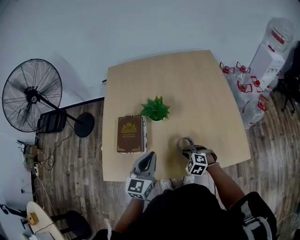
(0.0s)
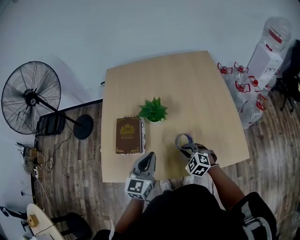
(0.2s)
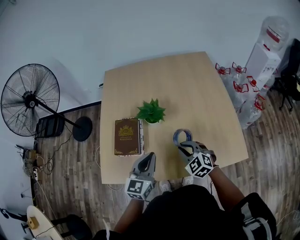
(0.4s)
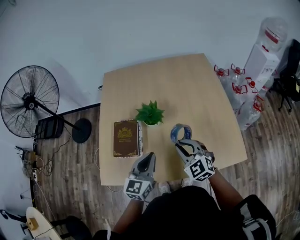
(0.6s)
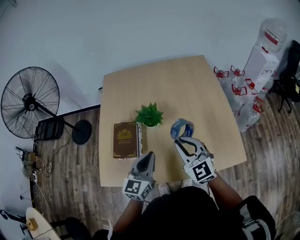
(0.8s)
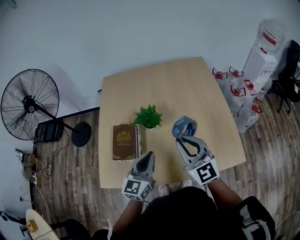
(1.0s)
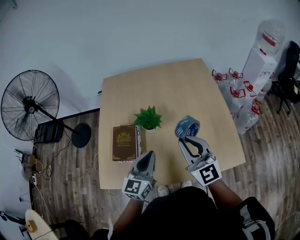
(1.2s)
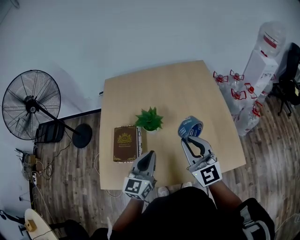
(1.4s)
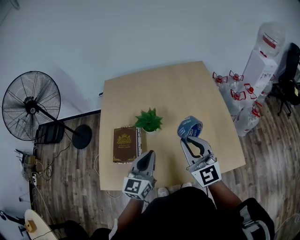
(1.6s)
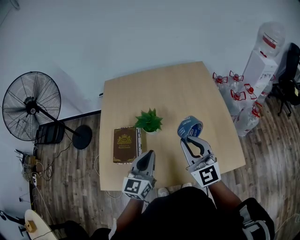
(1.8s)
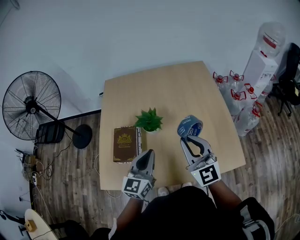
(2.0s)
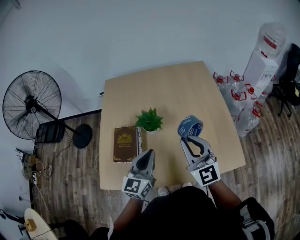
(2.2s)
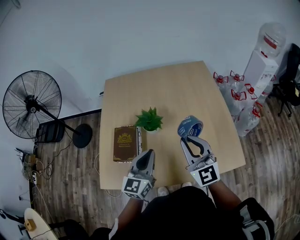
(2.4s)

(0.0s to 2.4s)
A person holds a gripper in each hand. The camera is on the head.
0.0s - 1.2s: The right gripper shifts roughly 30 cm upward, and tilts its fingers some 60 degrees upward; the left gripper moves some 5 cm.
1.2s - 2.4s: There are only small adjustments of the grippers.

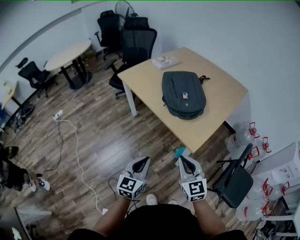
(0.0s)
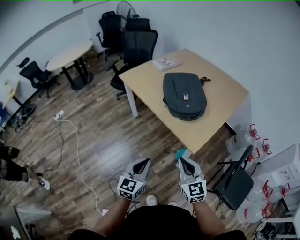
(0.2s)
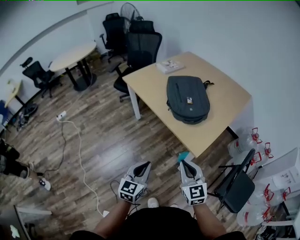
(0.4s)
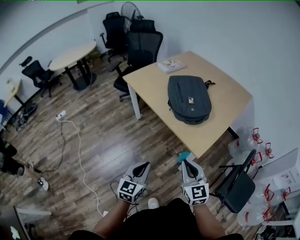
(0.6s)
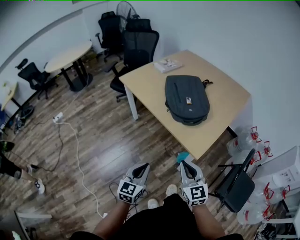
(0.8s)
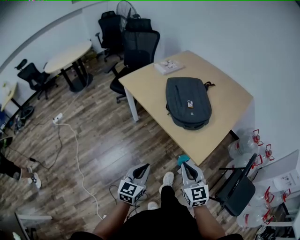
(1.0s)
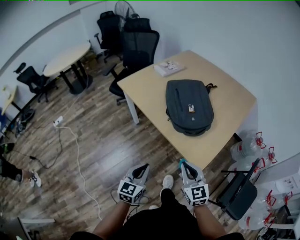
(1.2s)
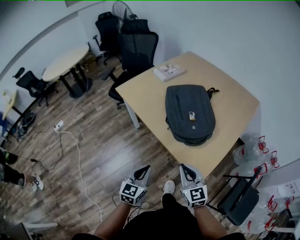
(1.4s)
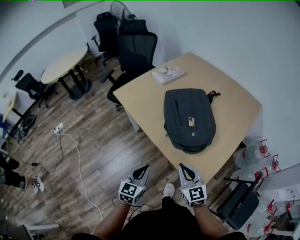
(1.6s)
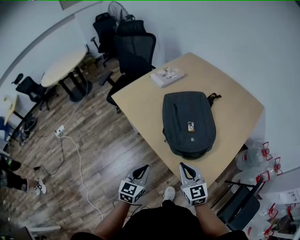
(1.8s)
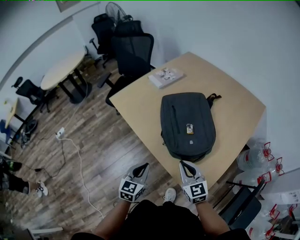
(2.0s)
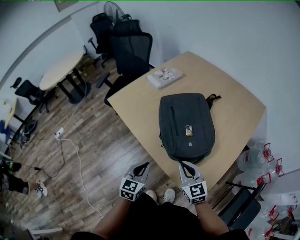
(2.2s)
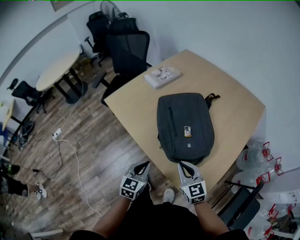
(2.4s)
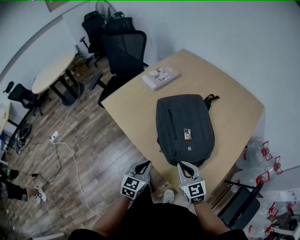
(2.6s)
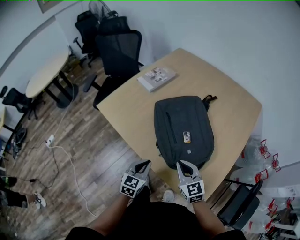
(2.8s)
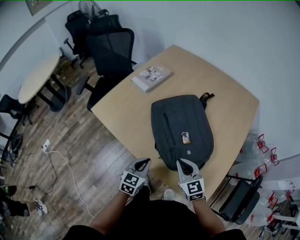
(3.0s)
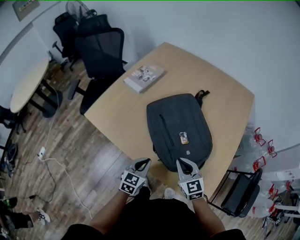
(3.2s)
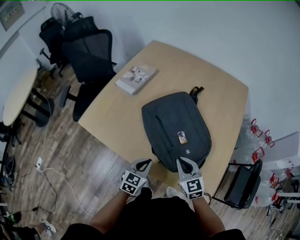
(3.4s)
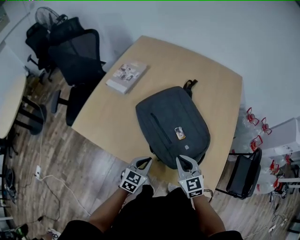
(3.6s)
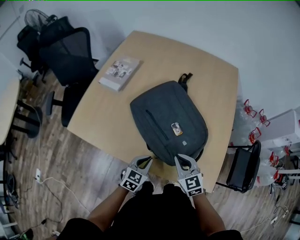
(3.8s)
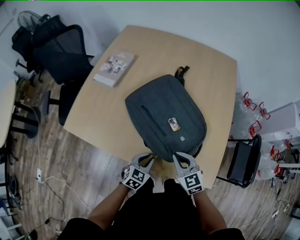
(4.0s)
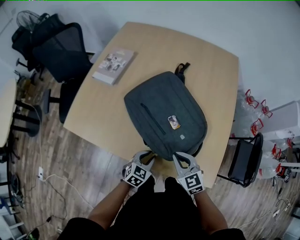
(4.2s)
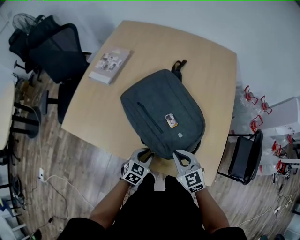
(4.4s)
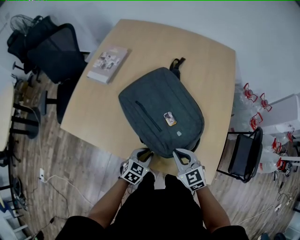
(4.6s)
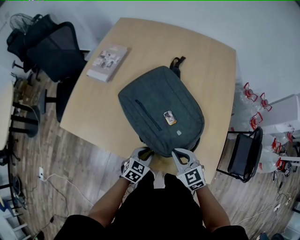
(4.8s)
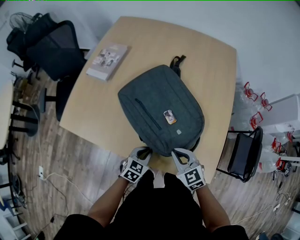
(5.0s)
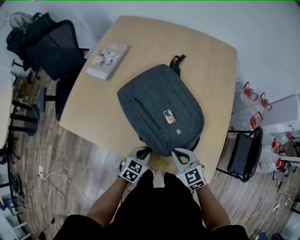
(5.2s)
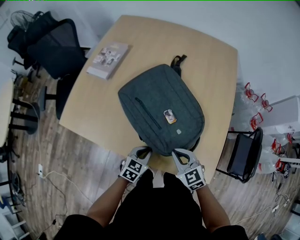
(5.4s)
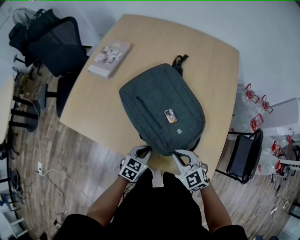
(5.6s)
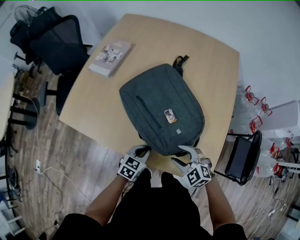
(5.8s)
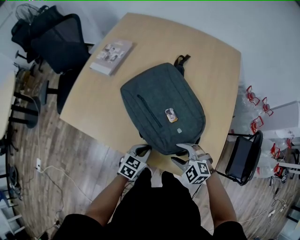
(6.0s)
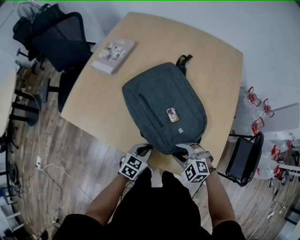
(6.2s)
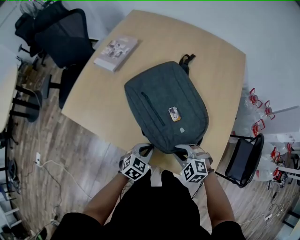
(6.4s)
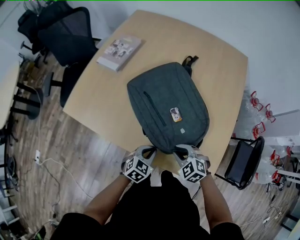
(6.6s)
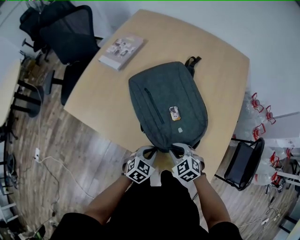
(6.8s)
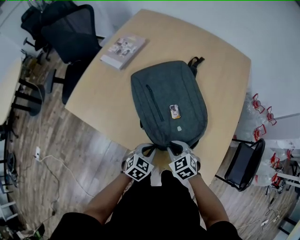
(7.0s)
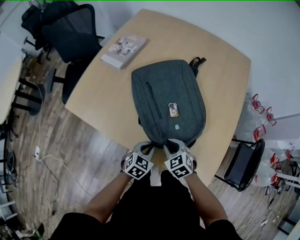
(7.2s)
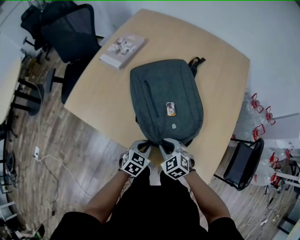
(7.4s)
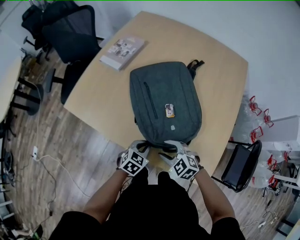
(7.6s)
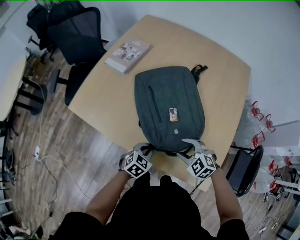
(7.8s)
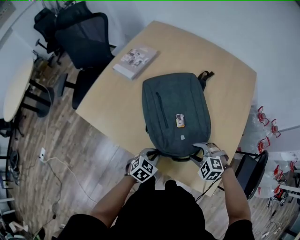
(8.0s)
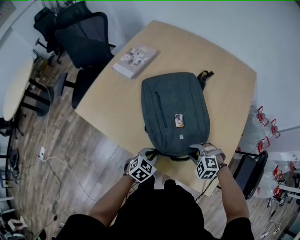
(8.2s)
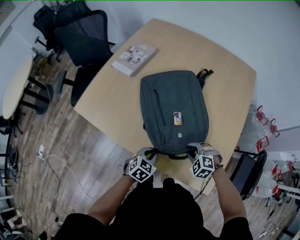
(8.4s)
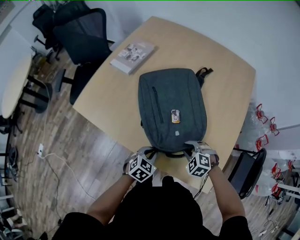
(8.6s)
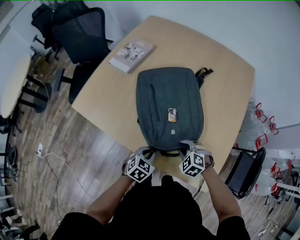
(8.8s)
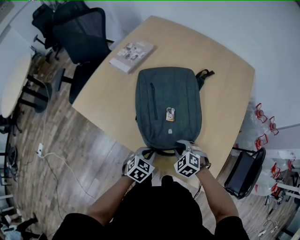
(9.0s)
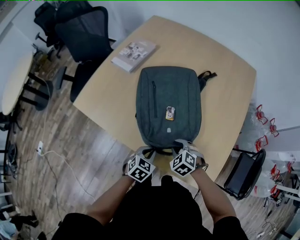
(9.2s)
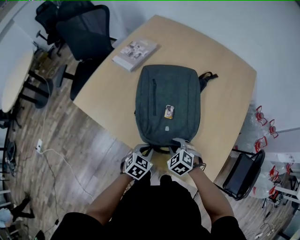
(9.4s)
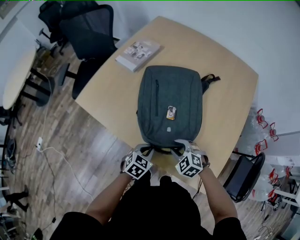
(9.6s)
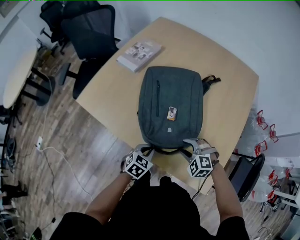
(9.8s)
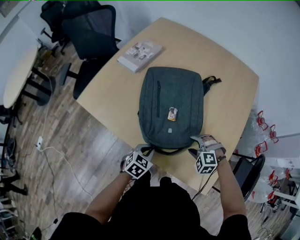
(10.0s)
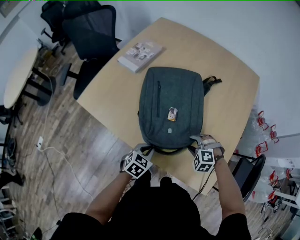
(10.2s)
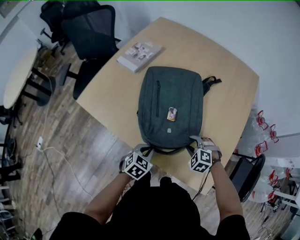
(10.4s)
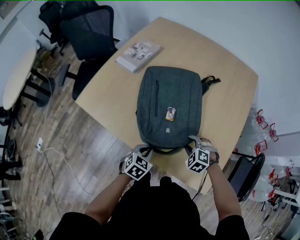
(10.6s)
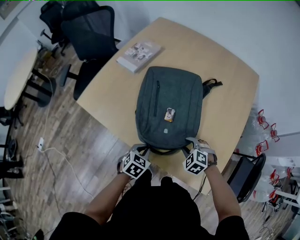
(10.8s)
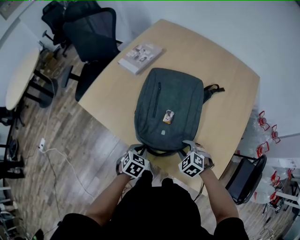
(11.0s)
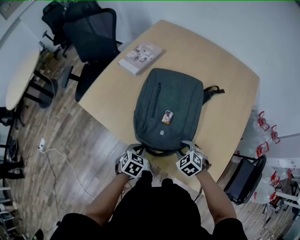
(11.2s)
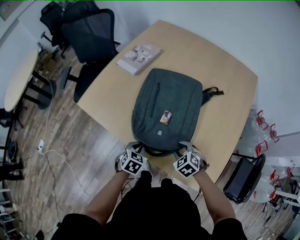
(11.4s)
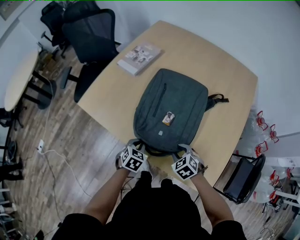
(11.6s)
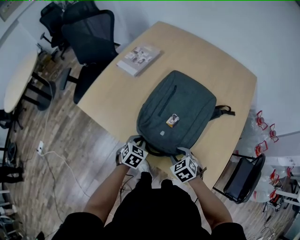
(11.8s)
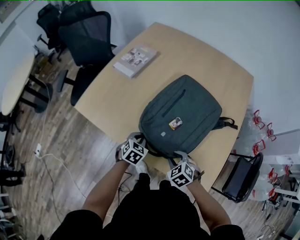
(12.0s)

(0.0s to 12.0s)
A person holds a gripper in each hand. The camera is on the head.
0.0s - 1.6s: Both grippers move forward, roughly 20 cm.
1.6s - 3.0s: Both grippers travel together forward, approximately 20 cm.
3.0s - 4.4s: The left gripper shifts roughly 10 cm downward, changes its angle by about 30 degrees, and opens up.
4.4s - 6.0s: The right gripper shifts by approximately 5 cm, swivels some 40 degrees, and opens.
6.0s - 7.6s: The right gripper goes some 5 cm to the left, and closes and opens again.
7.6s - 9.0s: The right gripper closes up.
9.0s - 10.4s: The right gripper heads to the right, covering approximately 5 cm, and opens its fingers.
10.4s - 12.0s: The left gripper shifts some 10 cm forward, while the right gripper moves to the left and backward, roughly 10 cm, and changes its angle by approximately 30 degrees.

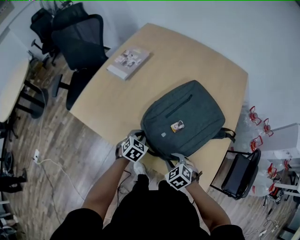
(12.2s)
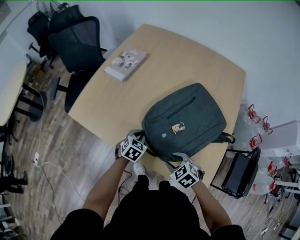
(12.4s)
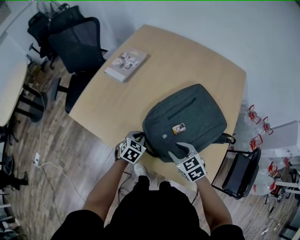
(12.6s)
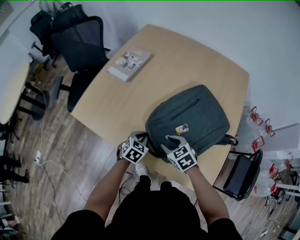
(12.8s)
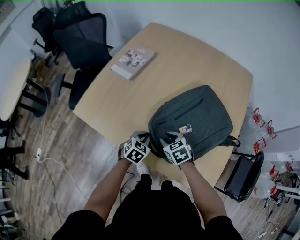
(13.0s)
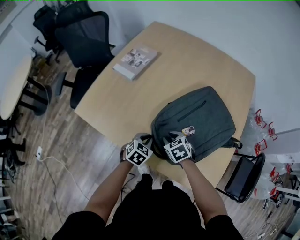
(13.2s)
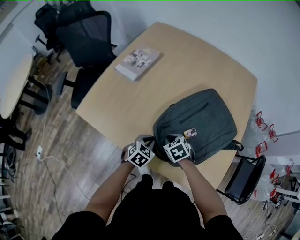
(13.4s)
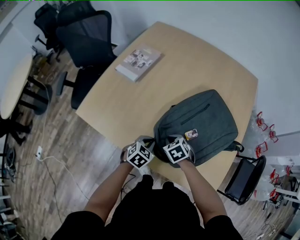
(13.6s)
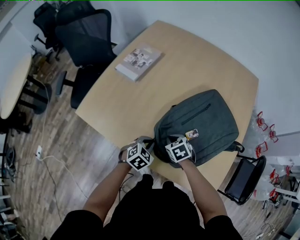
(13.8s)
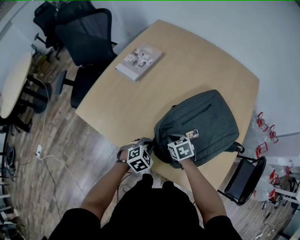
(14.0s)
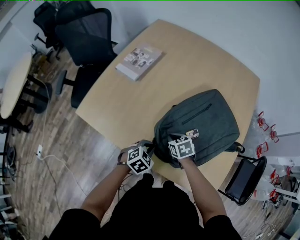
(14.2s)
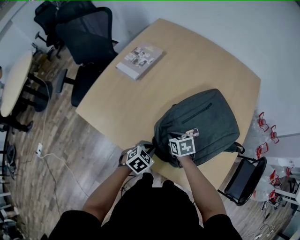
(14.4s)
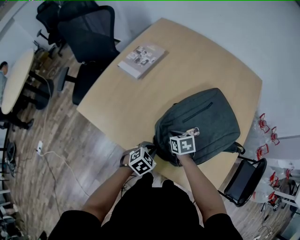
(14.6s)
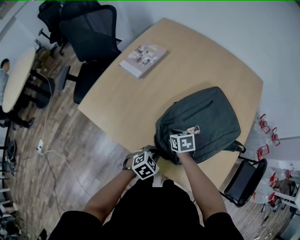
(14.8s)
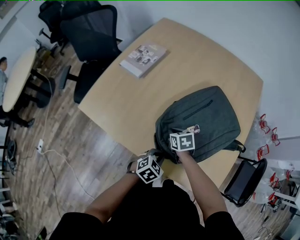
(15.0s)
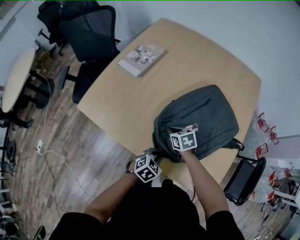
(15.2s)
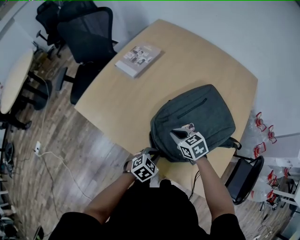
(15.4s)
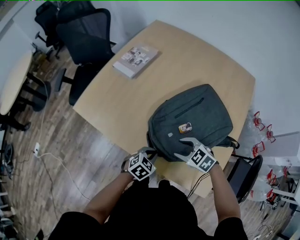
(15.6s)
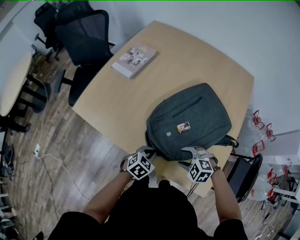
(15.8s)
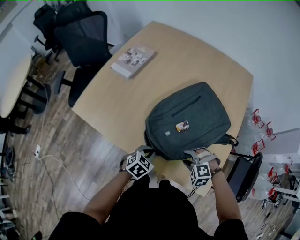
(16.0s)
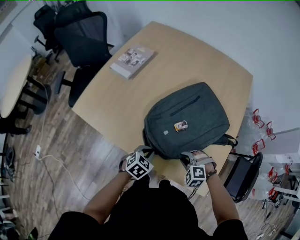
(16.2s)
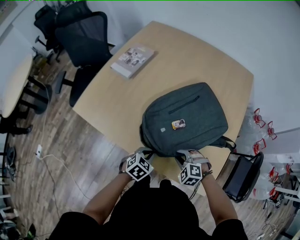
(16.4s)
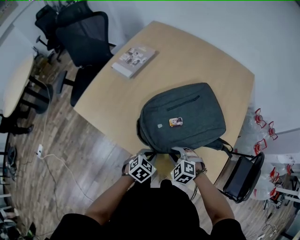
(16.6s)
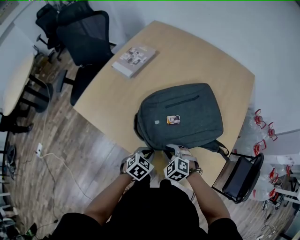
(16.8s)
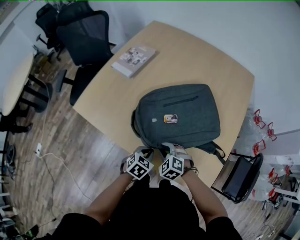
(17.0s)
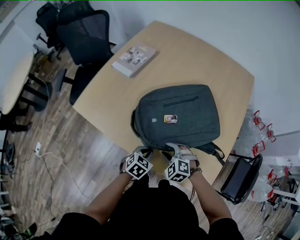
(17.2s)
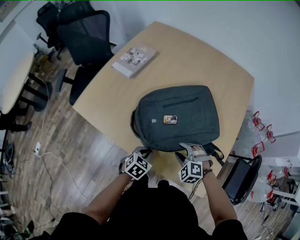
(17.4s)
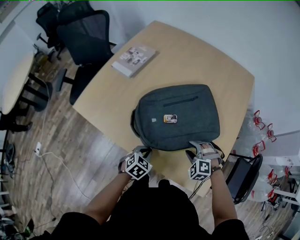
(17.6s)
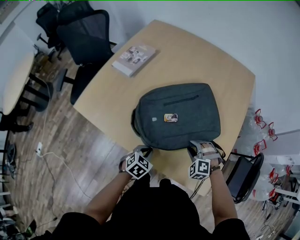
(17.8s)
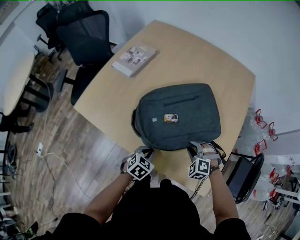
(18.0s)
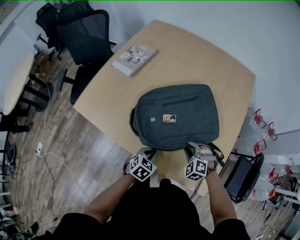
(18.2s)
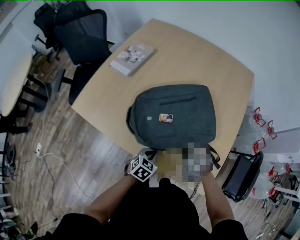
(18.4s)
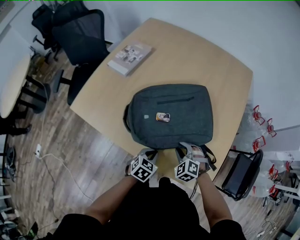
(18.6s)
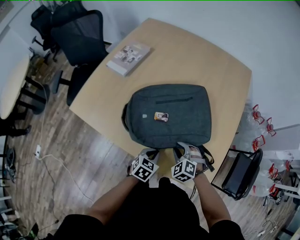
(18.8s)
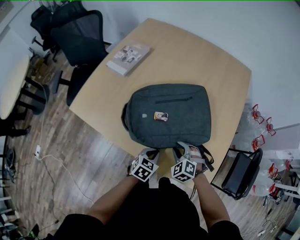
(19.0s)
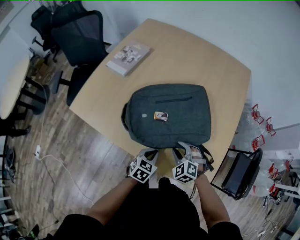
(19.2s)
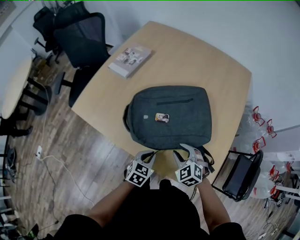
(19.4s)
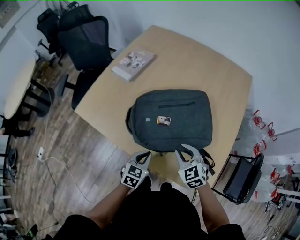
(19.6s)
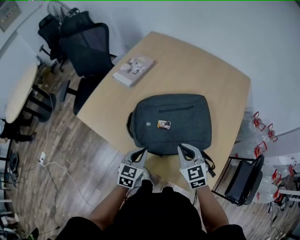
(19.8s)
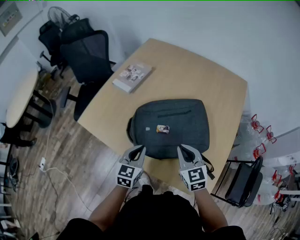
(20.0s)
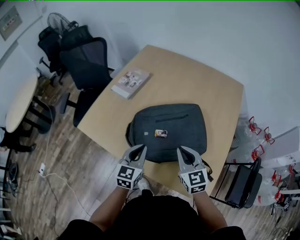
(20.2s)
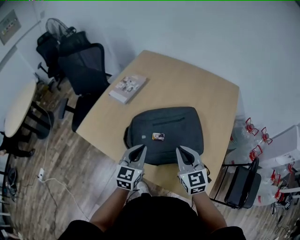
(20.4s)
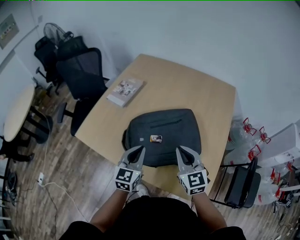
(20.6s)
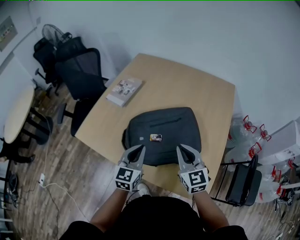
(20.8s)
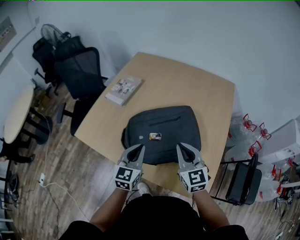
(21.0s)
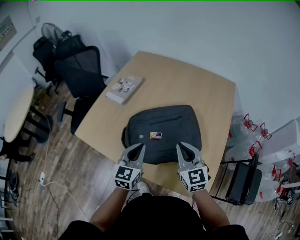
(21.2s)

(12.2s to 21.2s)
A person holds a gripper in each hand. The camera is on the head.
12.2s - 13.8s: The right gripper moves forward, about 15 cm, and closes up.
13.8s - 15.2s: The left gripper travels backward and to the right by approximately 10 cm.
15.2s - 16.6s: The right gripper travels backward by some 15 cm, twists roughly 50 degrees counterclockwise, seen from behind, and opens, then closes once more.
16.6s - 18.2s: The right gripper heads to the right, covering about 10 cm, and opens, then closes again.
18.2s - 19.8s: The left gripper travels upward and to the left by approximately 10 cm, and turns by approximately 30 degrees. Meanwhile the right gripper goes about 15 cm upward, twists roughly 40 degrees clockwise, seen from behind, and closes.
19.8s - 21.2s: Both grippers travel together upward, about 10 cm. The right gripper rotates approximately 20 degrees.
